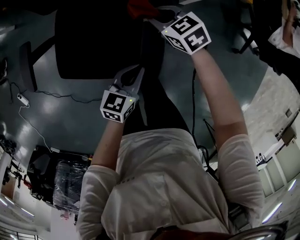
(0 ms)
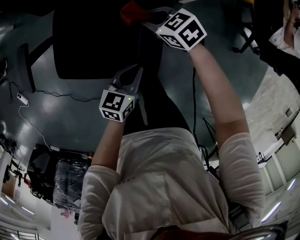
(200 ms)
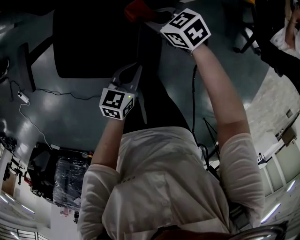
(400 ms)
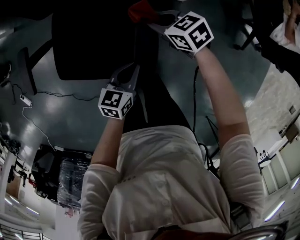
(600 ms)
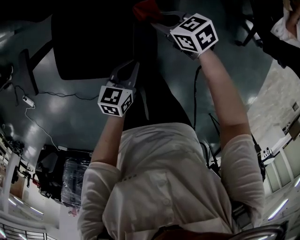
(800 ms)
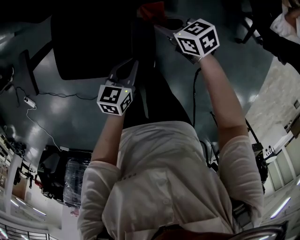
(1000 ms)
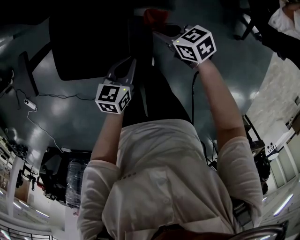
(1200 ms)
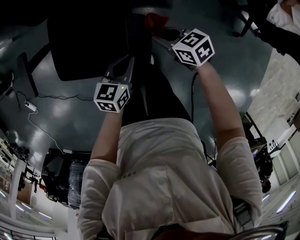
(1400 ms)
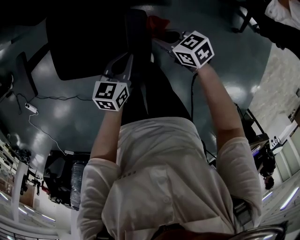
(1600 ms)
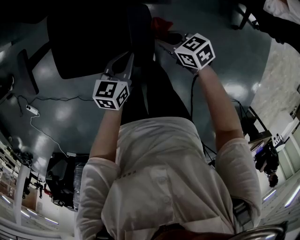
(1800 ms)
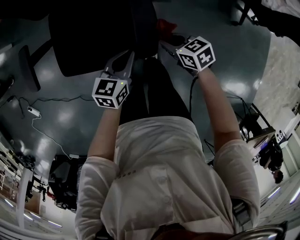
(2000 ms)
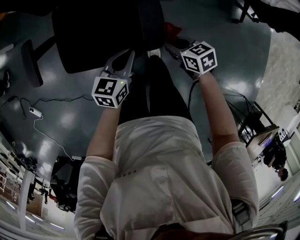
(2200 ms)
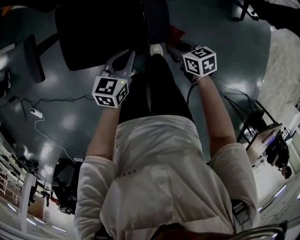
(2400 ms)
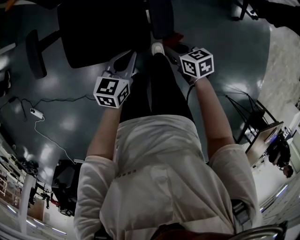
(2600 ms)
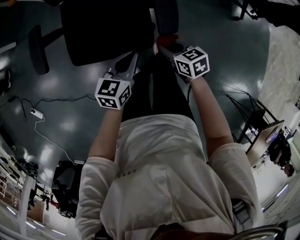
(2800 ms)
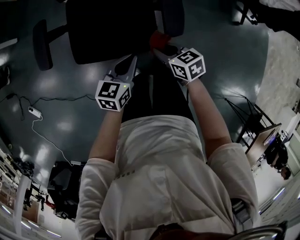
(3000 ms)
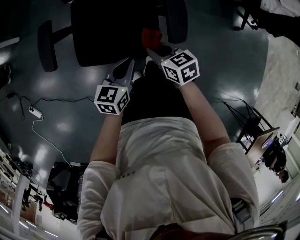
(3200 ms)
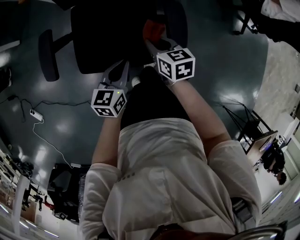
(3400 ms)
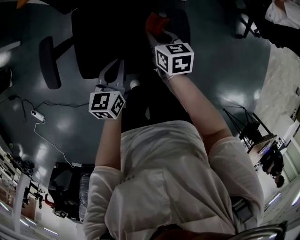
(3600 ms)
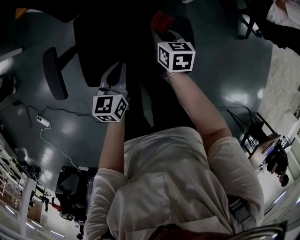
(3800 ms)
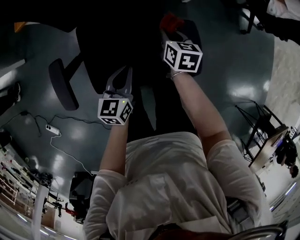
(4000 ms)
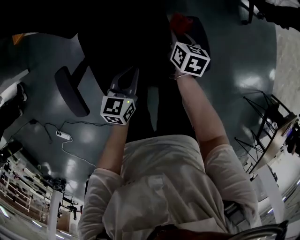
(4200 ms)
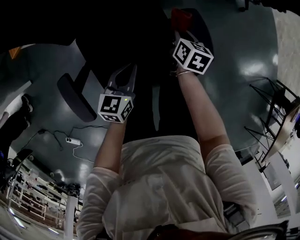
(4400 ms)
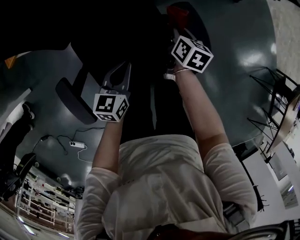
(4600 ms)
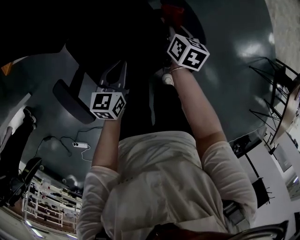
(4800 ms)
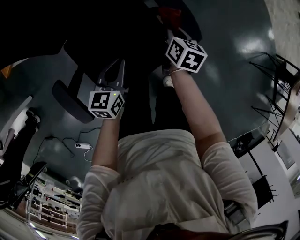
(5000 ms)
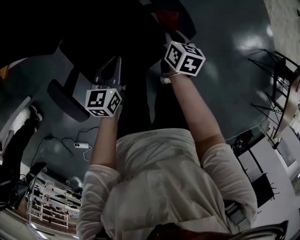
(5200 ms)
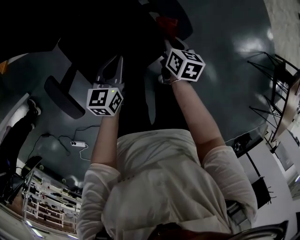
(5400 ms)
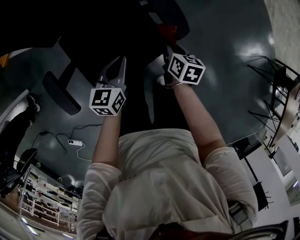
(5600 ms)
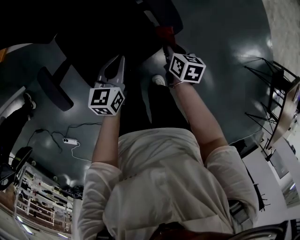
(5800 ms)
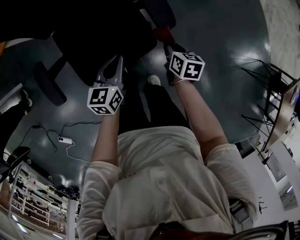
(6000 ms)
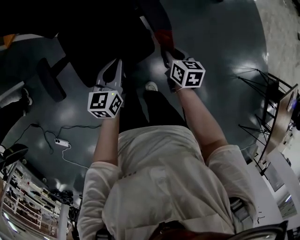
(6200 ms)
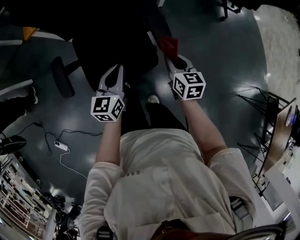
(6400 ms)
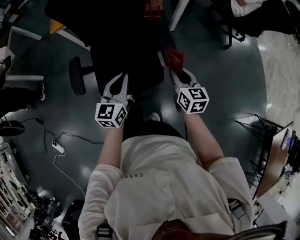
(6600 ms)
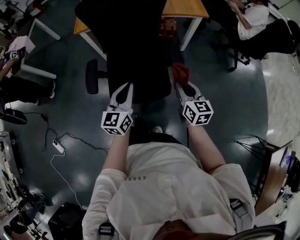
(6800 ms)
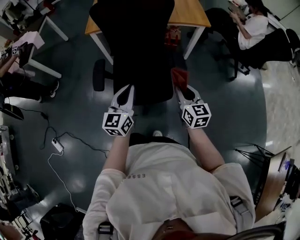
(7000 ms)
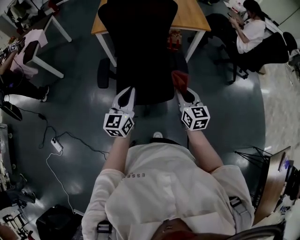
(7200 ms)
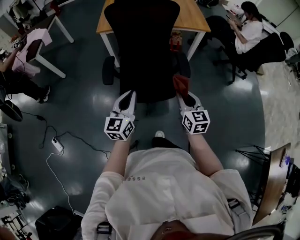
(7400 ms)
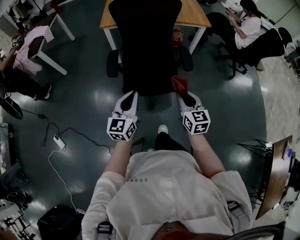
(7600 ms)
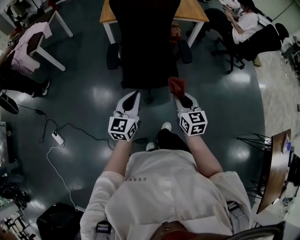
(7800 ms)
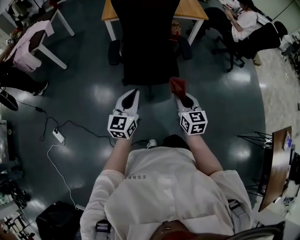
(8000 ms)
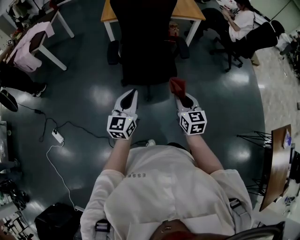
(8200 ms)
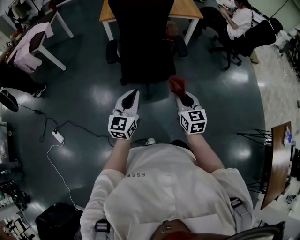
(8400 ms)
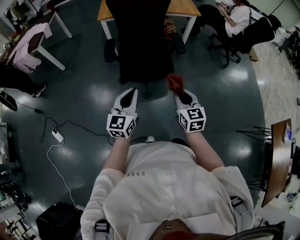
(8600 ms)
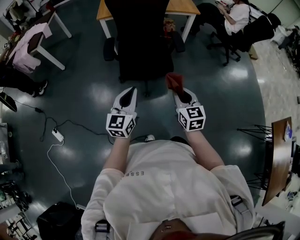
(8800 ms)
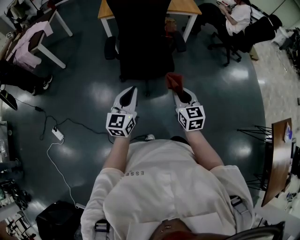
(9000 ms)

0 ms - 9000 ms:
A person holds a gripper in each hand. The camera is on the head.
0 ms - 1600 ms: The right gripper travels backward by approximately 15 cm.
1600 ms - 3000 ms: The grippers both shift to the left and backward by some 20 cm.
3000 ms - 4400 ms: The left gripper shifts by approximately 20 cm. Meanwhile the right gripper moves about 20 cm, and changes its angle by roughly 60 degrees.
4400 ms - 6000 ms: The right gripper travels to the right and backward by about 20 cm, while the left gripper is displaced to the right and backward by some 10 cm.
6000 ms - 7600 ms: The right gripper moves upward, backward and to the left, some 40 cm, and points its fingers about 30 degrees further upward, while the left gripper heads backward, upward and to the left, covering approximately 40 cm, and swivels roughly 40 degrees.
7600 ms - 9000 ms: The grippers both shift backward by about 15 cm.

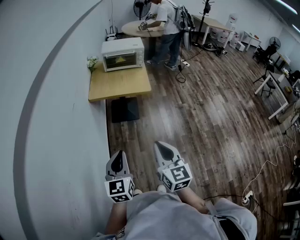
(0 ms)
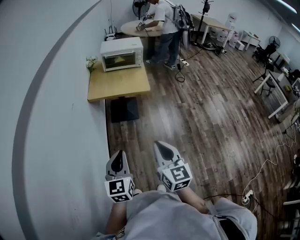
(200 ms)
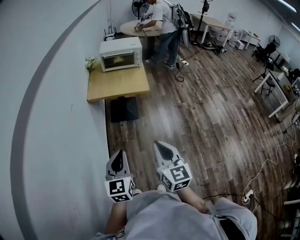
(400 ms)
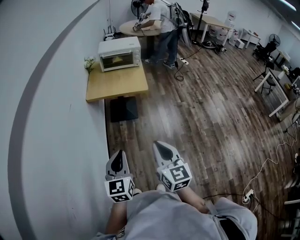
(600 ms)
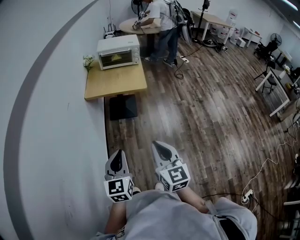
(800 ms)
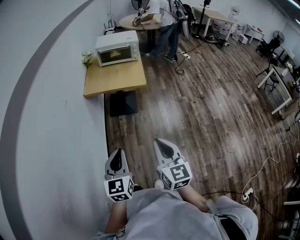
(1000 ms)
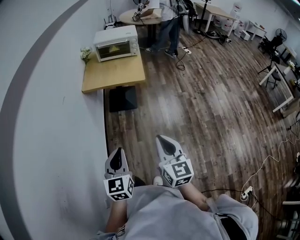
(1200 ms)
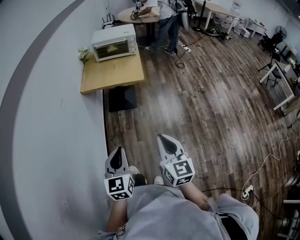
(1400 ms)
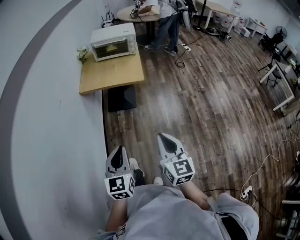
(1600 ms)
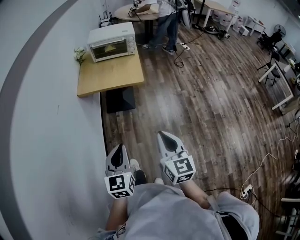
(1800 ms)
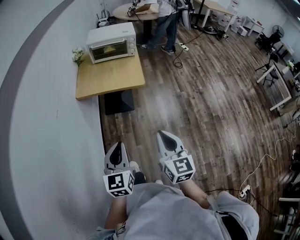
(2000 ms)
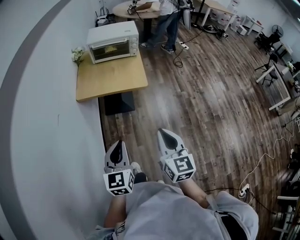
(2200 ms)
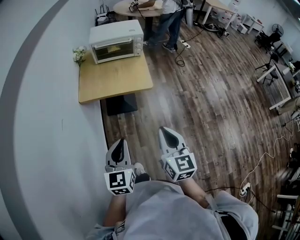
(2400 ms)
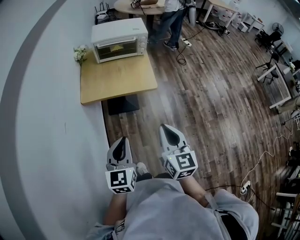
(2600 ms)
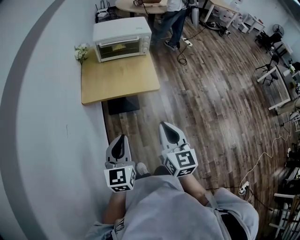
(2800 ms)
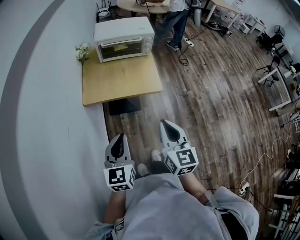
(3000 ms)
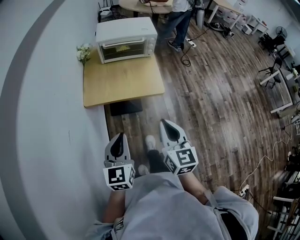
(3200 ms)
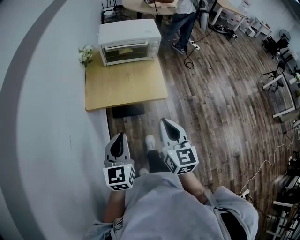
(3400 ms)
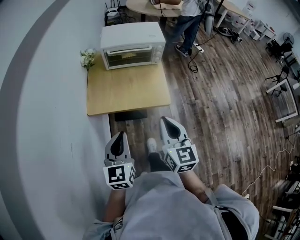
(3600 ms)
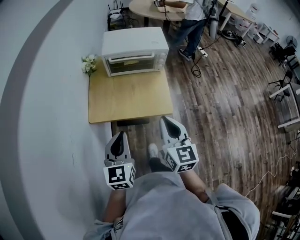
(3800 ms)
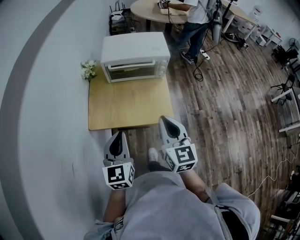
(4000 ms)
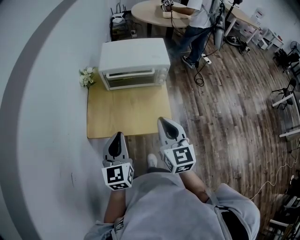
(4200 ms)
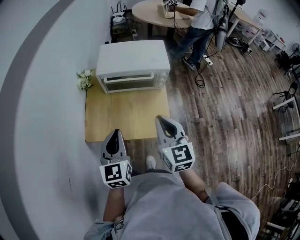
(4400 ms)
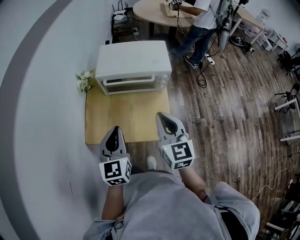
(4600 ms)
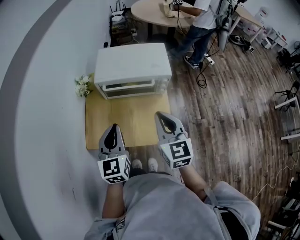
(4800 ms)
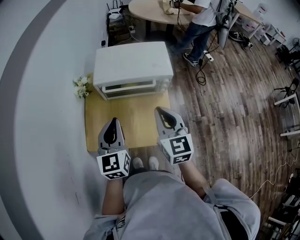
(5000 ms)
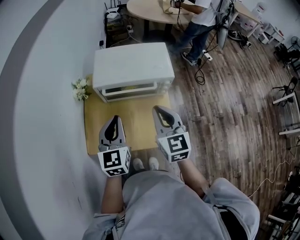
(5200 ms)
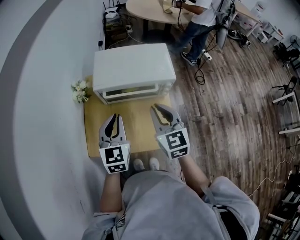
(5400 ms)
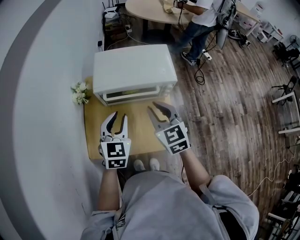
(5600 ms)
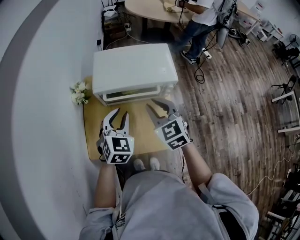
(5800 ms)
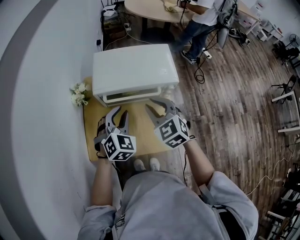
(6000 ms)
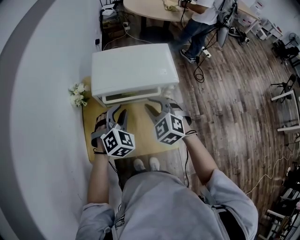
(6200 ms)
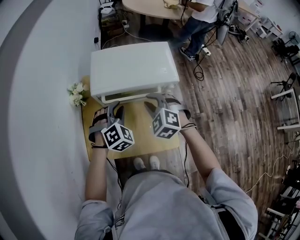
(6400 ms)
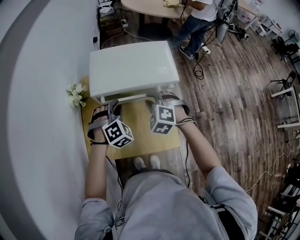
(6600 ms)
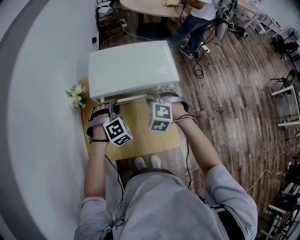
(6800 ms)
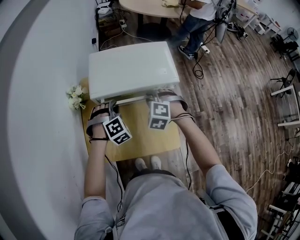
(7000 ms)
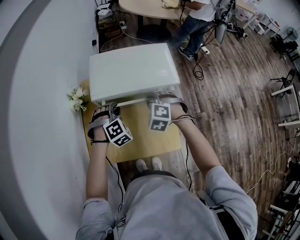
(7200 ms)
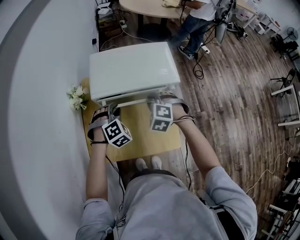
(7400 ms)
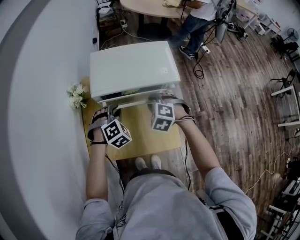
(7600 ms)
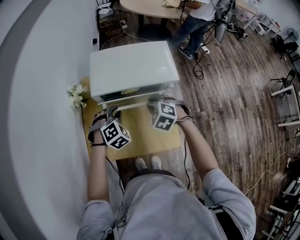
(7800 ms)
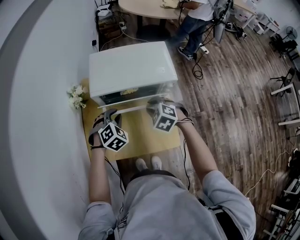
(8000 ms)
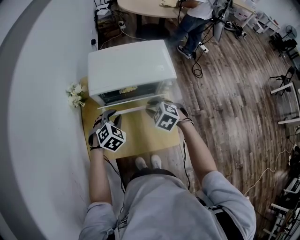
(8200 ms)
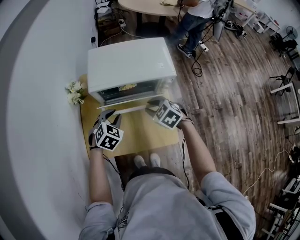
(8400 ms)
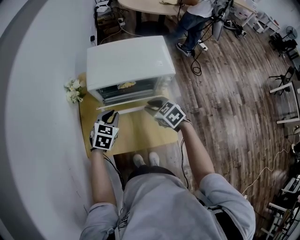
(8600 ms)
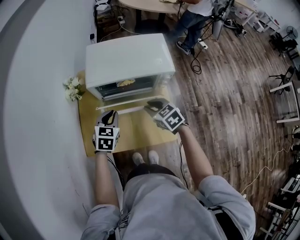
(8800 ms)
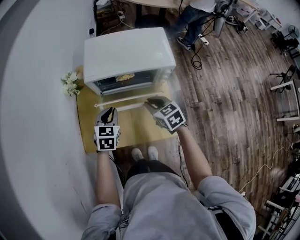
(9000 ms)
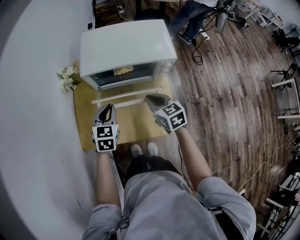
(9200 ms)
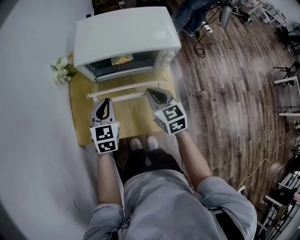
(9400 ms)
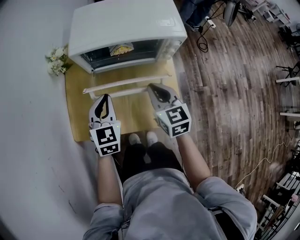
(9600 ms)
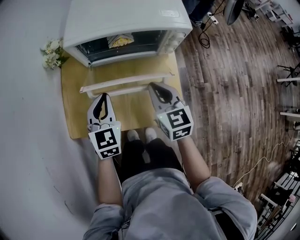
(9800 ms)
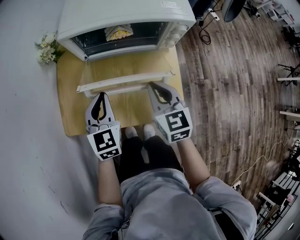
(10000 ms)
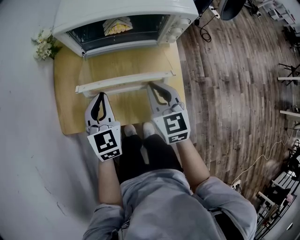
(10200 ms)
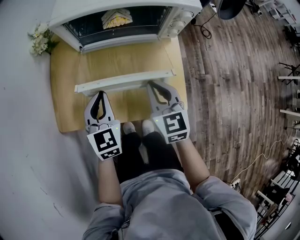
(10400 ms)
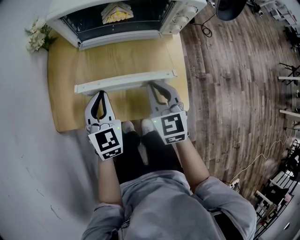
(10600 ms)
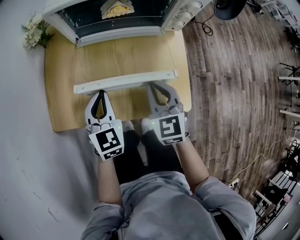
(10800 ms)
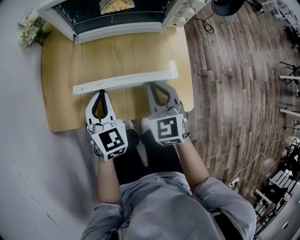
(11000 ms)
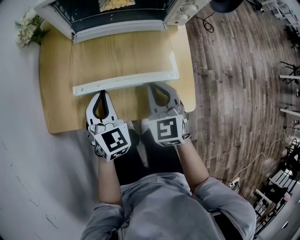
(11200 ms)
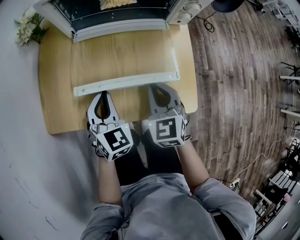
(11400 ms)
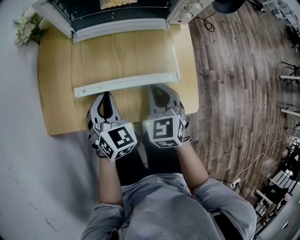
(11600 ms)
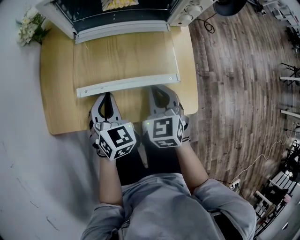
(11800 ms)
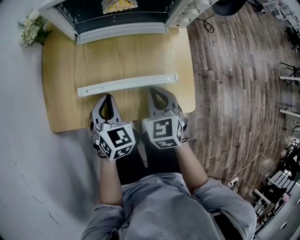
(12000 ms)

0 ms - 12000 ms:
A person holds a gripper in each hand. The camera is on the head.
0 ms - 1600 ms: The grippers both shift to the right by approximately 10 cm.
1600 ms - 3000 ms: The two grippers go approximately 30 cm forward and to the left.
3000 ms - 4400 ms: The grippers both shift forward by some 30 cm.
4400 ms - 6000 ms: Both grippers travel together forward, approximately 20 cm. The right gripper rotates approximately 30 degrees; the left gripper rolls clockwise, seen from behind, by approximately 40 degrees, and opens up.
6000 ms - 7600 ms: The grippers both shift downward by approximately 10 cm. The right gripper rotates roughly 40 degrees, while the left gripper turns by approximately 30 degrees.
7600 ms - 9000 ms: Both grippers move backward, about 5 cm. The left gripper rotates around the line of its fingers by about 50 degrees, counterclockwise from behind, while the right gripper twists roughly 50 degrees clockwise, seen from behind.
9000 ms - 10400 ms: Both grippers travel together downward and backward, some 10 cm. The right gripper rotates about 20 degrees.
10400 ms - 12000 ms: The grippers both shift downward by roughly 10 cm. The left gripper swivels about 20 degrees.

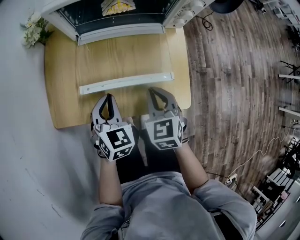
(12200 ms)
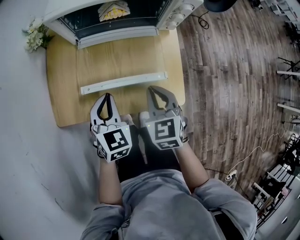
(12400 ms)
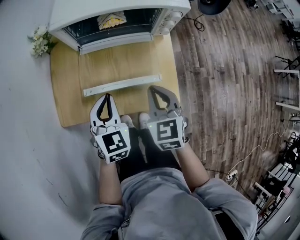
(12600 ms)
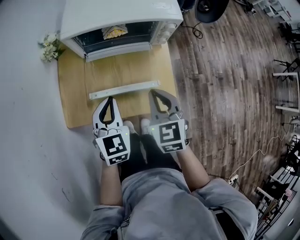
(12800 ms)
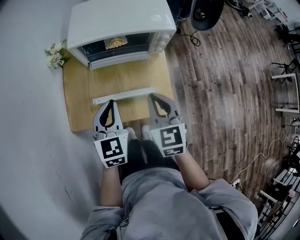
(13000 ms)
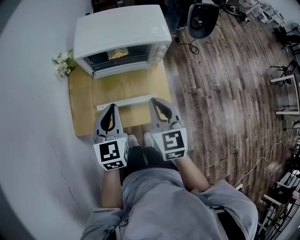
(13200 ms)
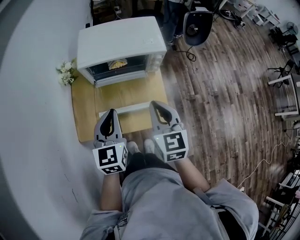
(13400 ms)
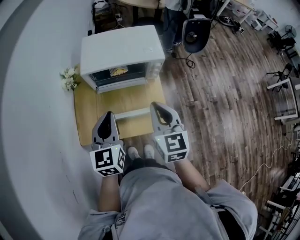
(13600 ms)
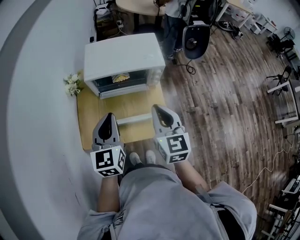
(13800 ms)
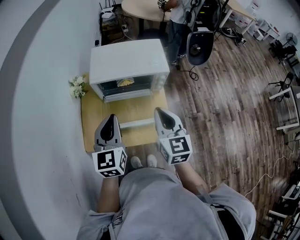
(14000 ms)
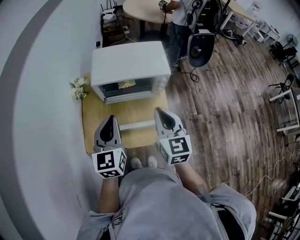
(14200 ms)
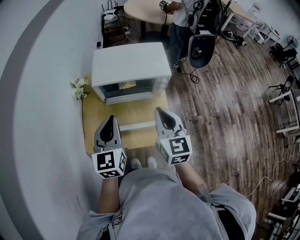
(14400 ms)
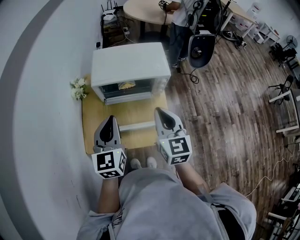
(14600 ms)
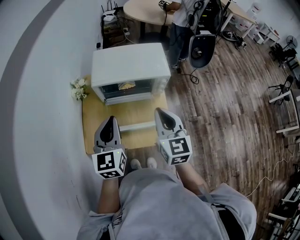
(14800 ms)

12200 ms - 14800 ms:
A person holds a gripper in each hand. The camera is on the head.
12200 ms - 13400 ms: The two grippers go about 25 cm upward. The left gripper turns by some 30 degrees; the right gripper changes its angle by roughly 20 degrees.
13400 ms - 14800 ms: Both grippers move upward, about 5 cm.
